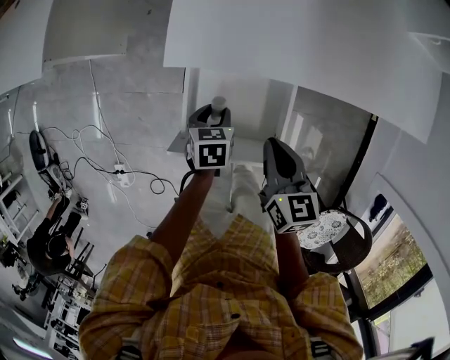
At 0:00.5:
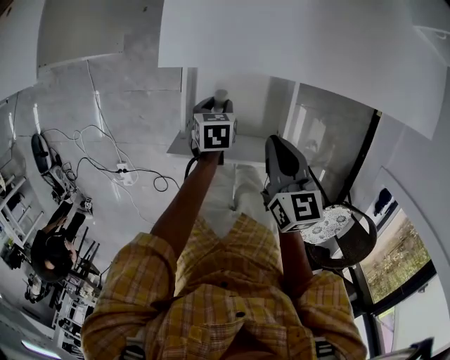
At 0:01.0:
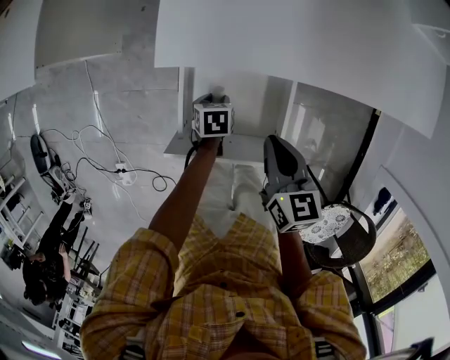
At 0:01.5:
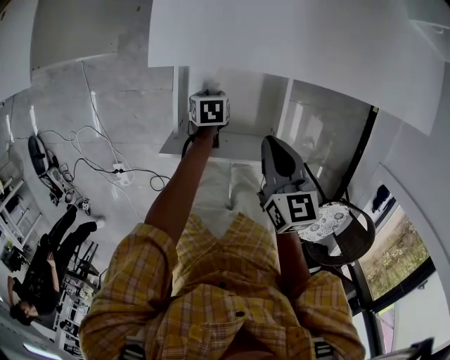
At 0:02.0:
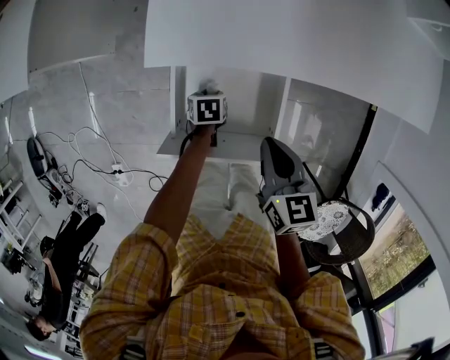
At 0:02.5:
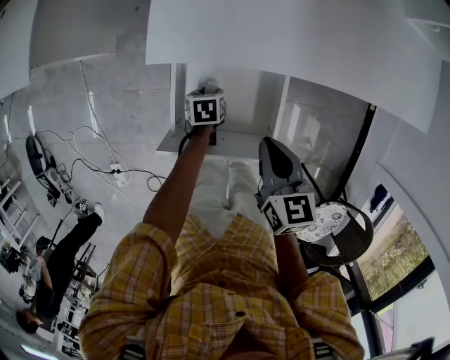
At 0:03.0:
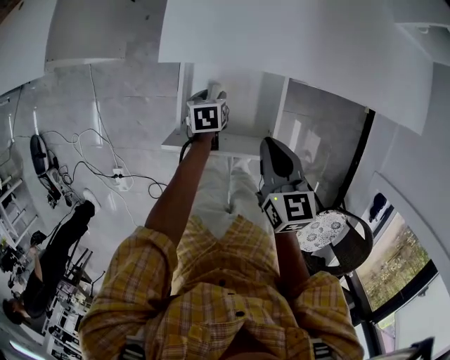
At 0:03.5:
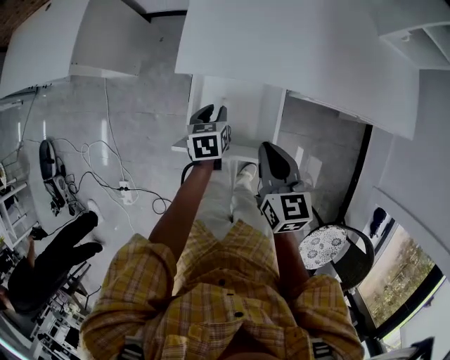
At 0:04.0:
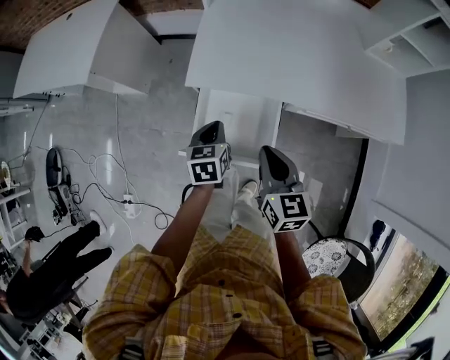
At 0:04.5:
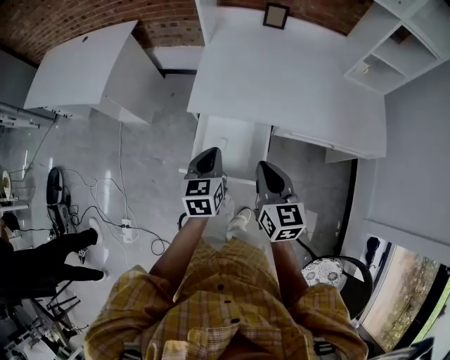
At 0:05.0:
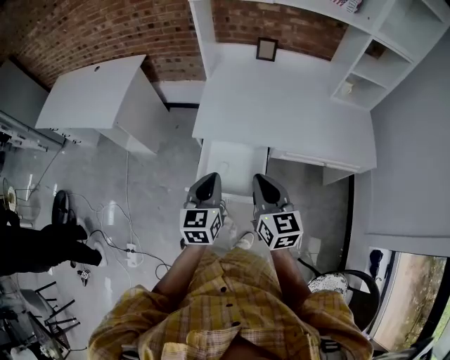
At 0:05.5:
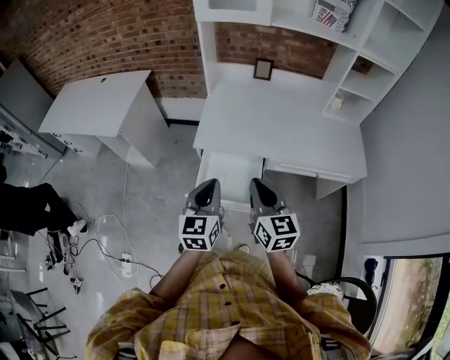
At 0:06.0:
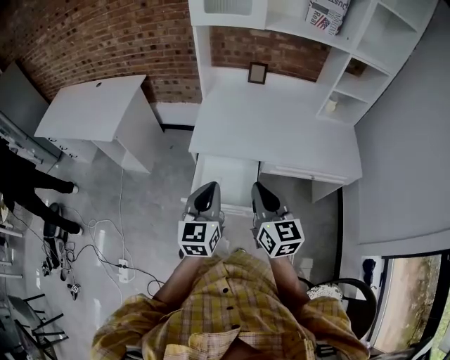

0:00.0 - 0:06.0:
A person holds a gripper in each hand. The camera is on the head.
0:00.0 - 0:02.0: The left gripper moves downward, about 15 cm.
0:02.0 - 0:04.0: The left gripper shifts about 30 cm upward, tilts its fingers approximately 30 degrees upward, and closes its fingers; the right gripper is displaced upward by approximately 15 cm.
0:04.0 - 0:06.0: The two grippers go about 25 cm upward and backward. The left gripper points its fingers roughly 30 degrees further upward.

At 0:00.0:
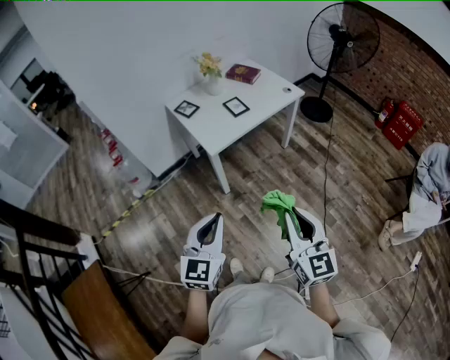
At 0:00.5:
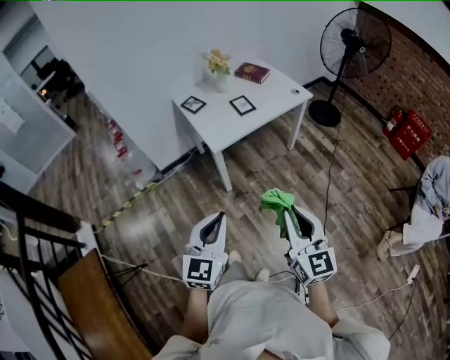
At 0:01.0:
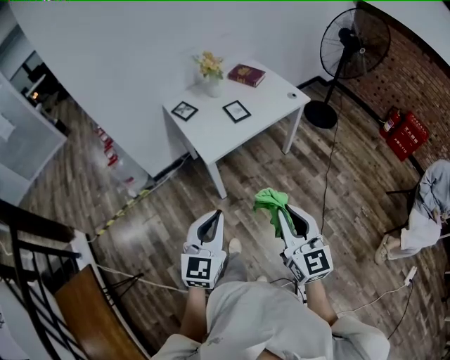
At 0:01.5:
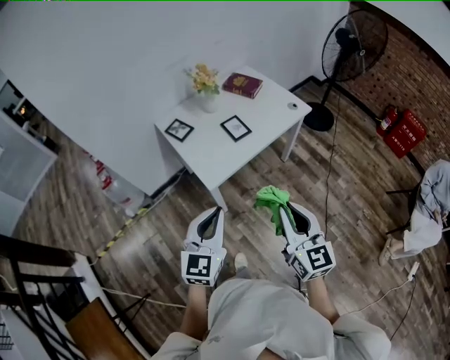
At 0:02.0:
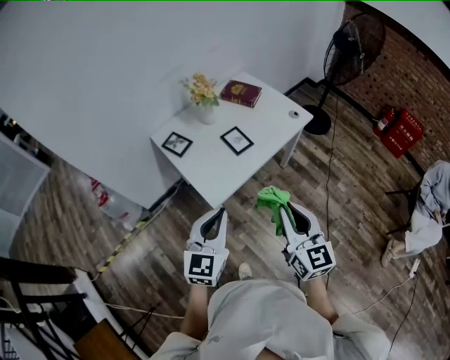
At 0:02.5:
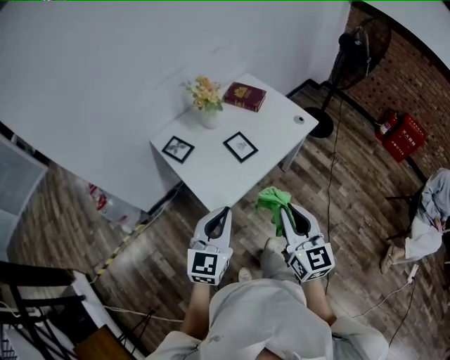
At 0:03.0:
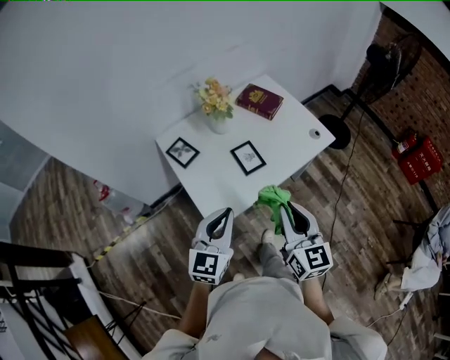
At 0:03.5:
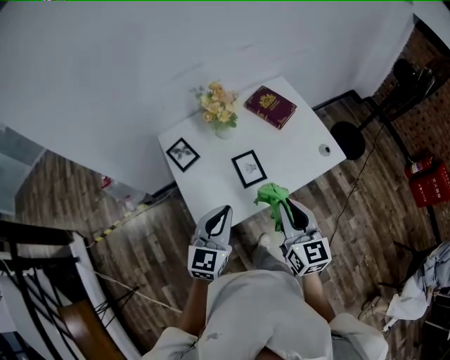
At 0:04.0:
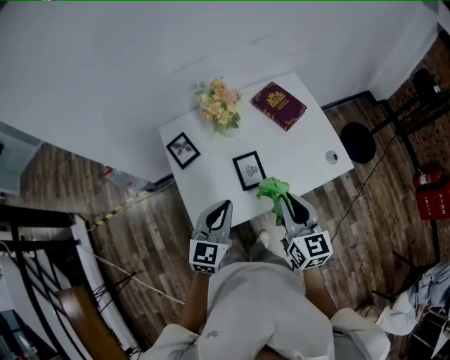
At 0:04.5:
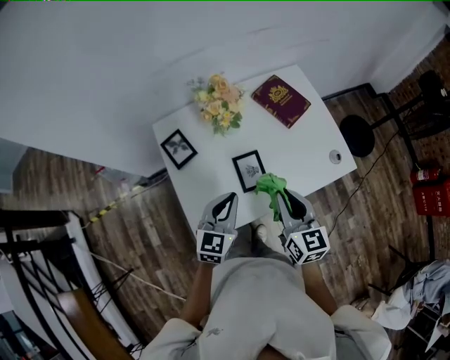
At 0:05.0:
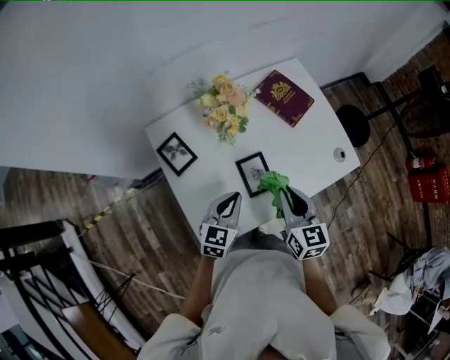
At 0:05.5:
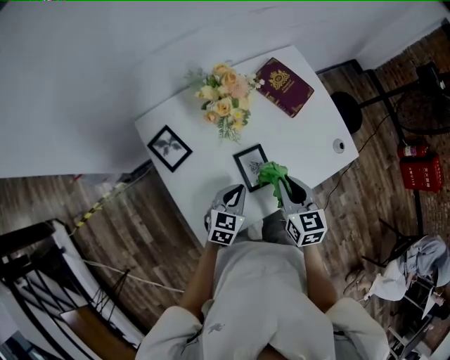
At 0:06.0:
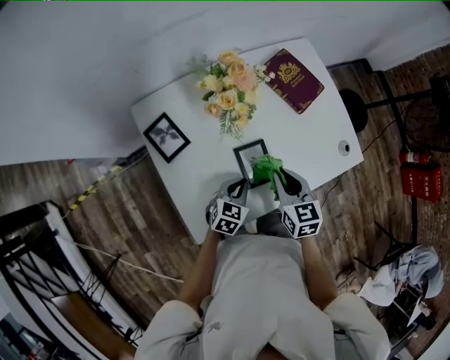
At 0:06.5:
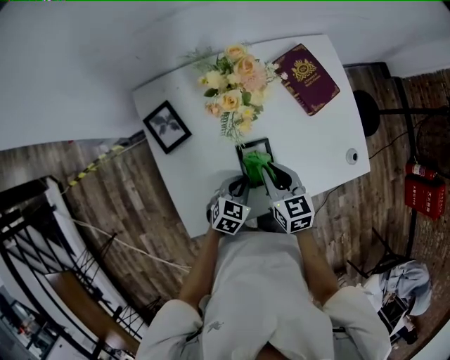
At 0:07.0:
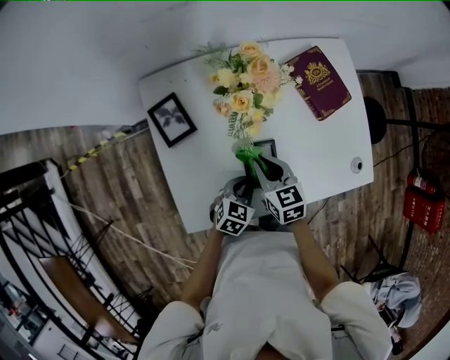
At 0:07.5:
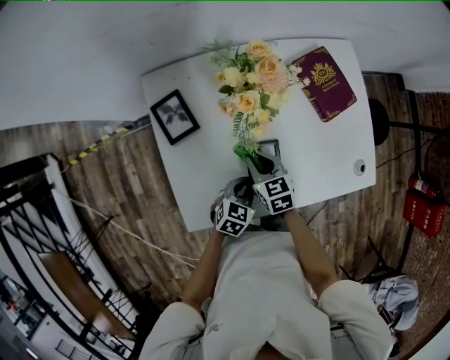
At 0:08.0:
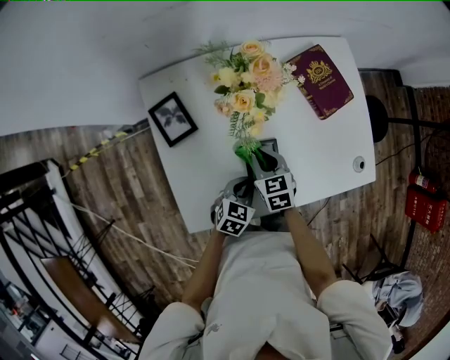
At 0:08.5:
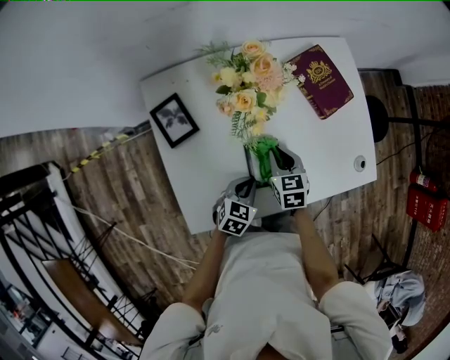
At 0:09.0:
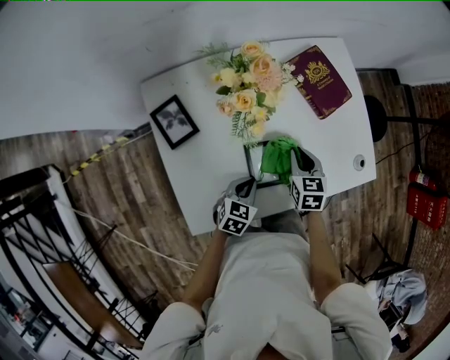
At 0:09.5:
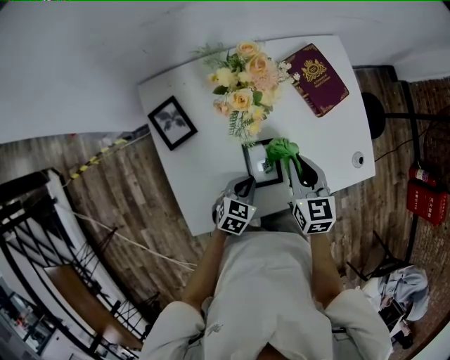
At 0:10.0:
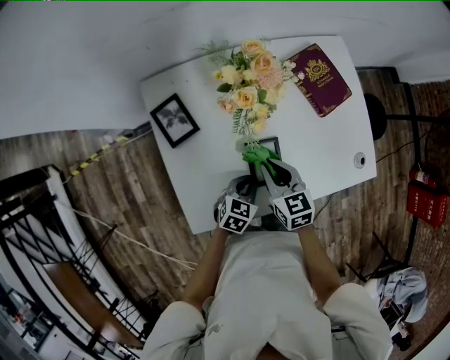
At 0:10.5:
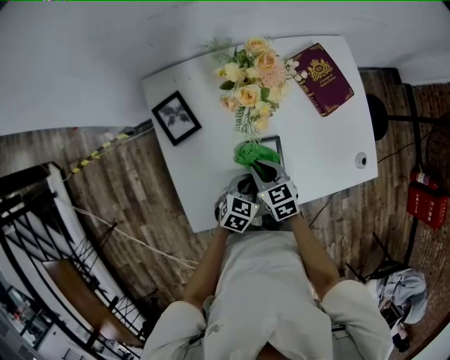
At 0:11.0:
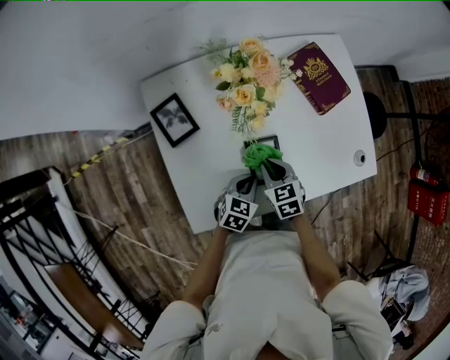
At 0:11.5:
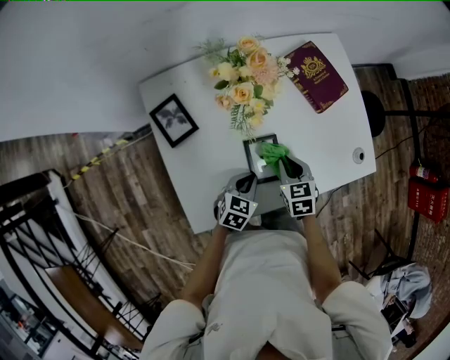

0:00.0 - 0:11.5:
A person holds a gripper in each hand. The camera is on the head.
0:00.0 - 0:02.0: Both grippers travel together forward, some 30 cm.
0:02.0 - 0:04.0: Both grippers move forward, some 30 cm. The right gripper turns by about 20 degrees.
0:04.0 - 0:06.0: The left gripper travels downward and forward by approximately 25 cm, and turns by approximately 30 degrees; the right gripper travels downward, forward and to the left by roughly 20 cm, and swivels about 20 degrees.
0:06.0 - 0:07.5: The right gripper goes some 15 cm to the left and downward, and swivels roughly 20 degrees.
0:07.5 - 0:09.5: The right gripper travels to the right and upward by roughly 15 cm, and rotates roughly 20 degrees.
0:09.5 - 0:11.5: The right gripper moves downward, approximately 10 cm.

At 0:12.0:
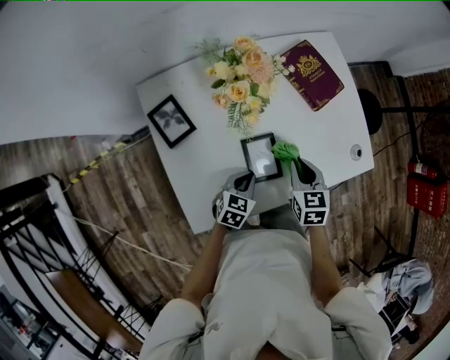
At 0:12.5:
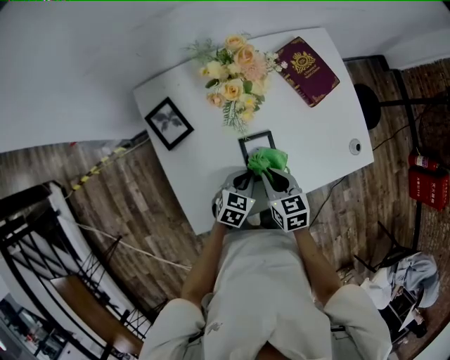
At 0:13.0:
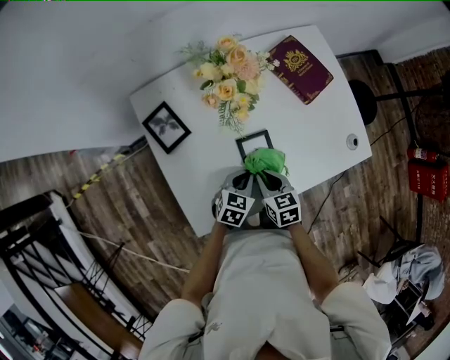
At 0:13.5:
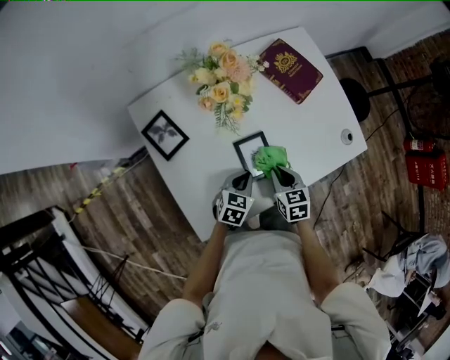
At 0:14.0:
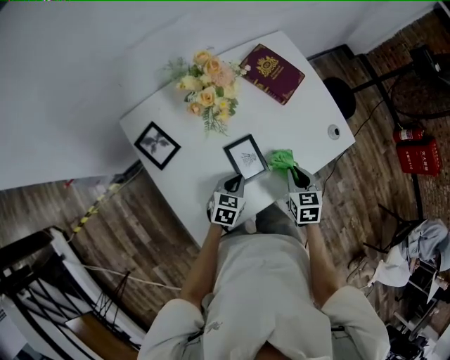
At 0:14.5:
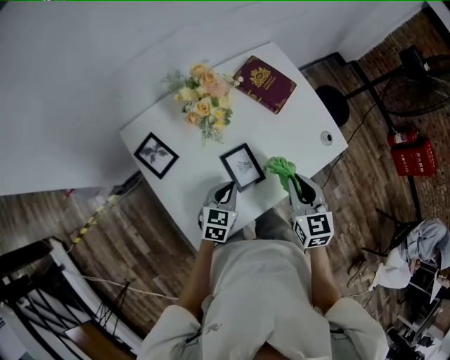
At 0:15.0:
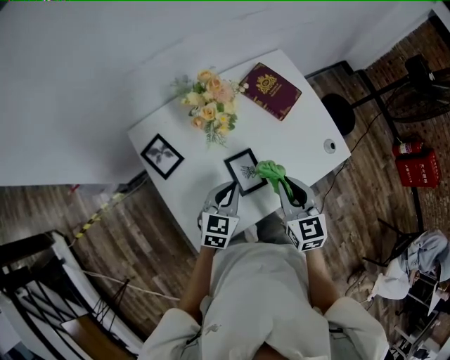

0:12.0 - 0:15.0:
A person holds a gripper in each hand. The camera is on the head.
0:12.0 - 0:13.5: The right gripper is displaced downward and backward by roughly 10 cm, and moves approximately 10 cm to the left and comes back.
0:13.5 - 0:15.0: The left gripper goes about 10 cm upward. Meanwhile the right gripper shifts about 20 cm upward, and changes its angle by approximately 20 degrees.

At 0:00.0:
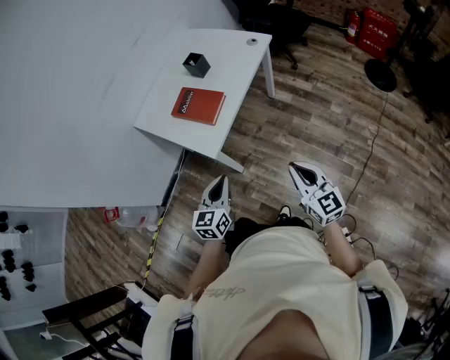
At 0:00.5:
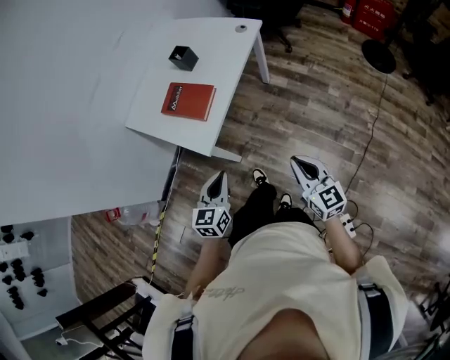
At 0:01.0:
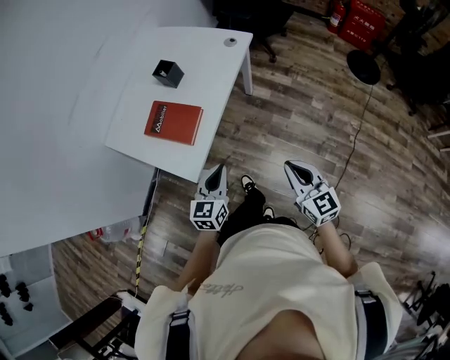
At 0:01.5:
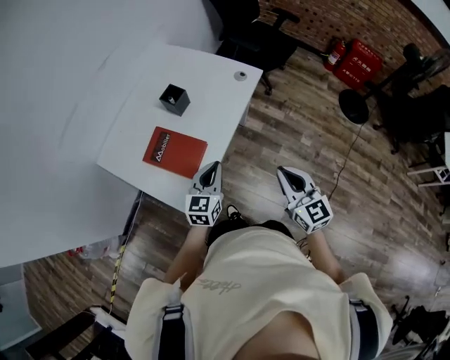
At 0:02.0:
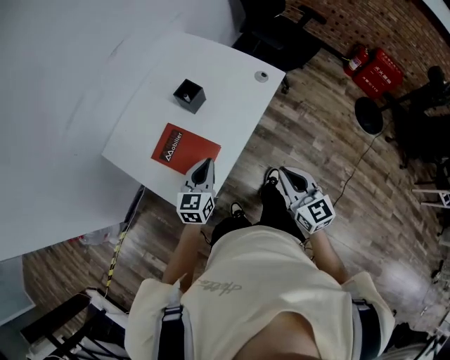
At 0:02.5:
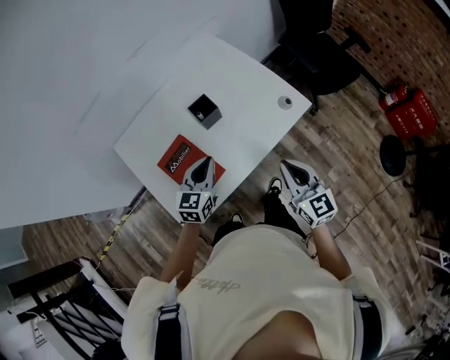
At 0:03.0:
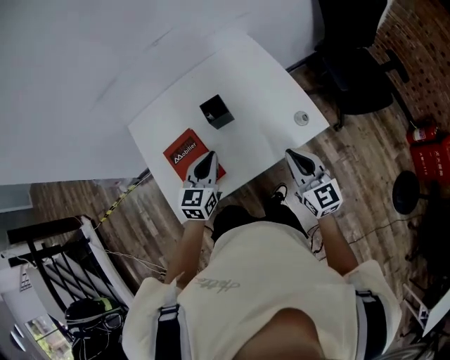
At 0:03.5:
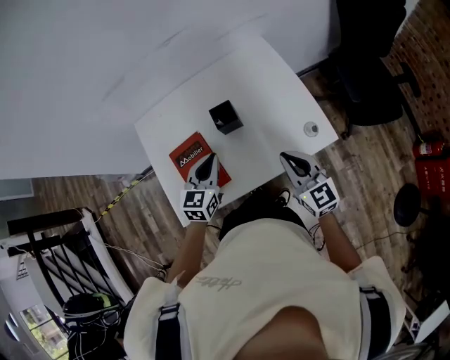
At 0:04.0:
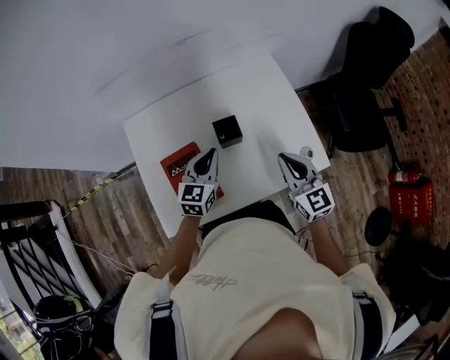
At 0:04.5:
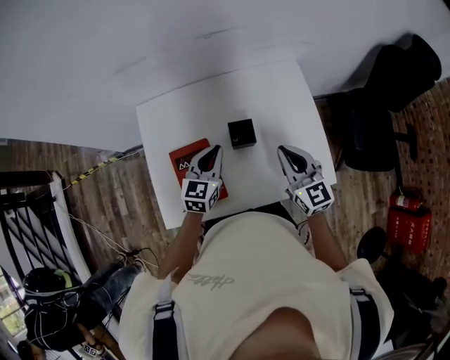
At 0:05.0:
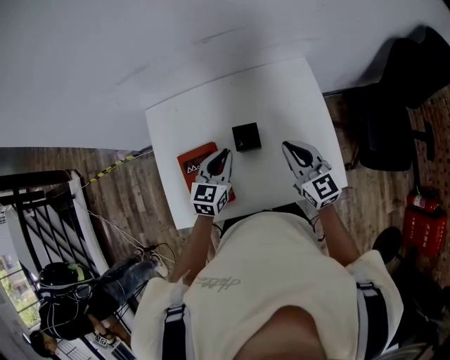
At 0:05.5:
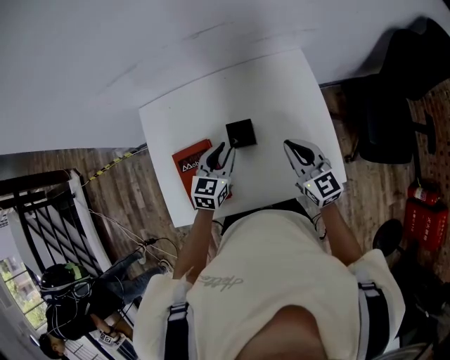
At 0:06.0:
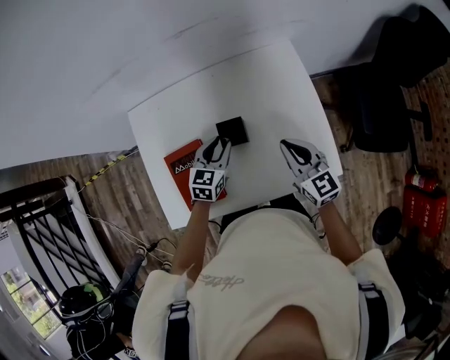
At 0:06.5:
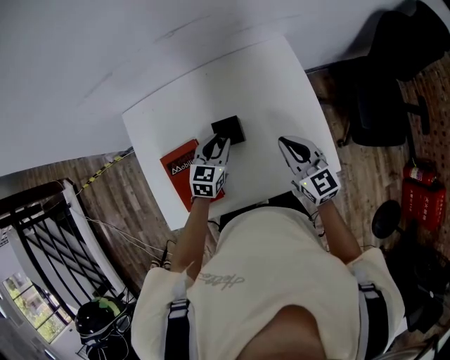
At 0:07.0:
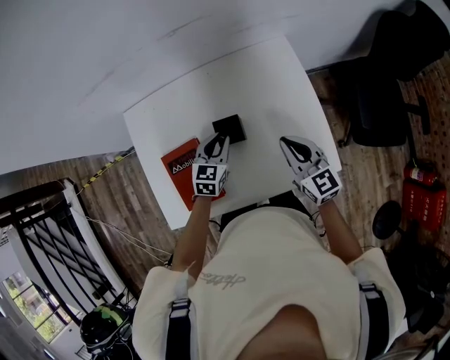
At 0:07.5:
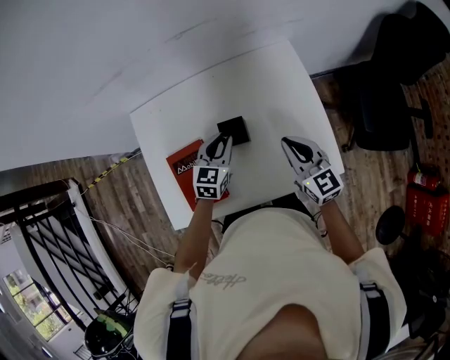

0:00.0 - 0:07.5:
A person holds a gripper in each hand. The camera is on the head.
0:00.0 - 0:02.0: Both grippers move forward, about 35 cm.
0:02.0 - 0:04.0: The right gripper moves about 35 cm, and rotates roughly 40 degrees. Meanwhile the left gripper changes place by roughly 20 cm, and swivels approximately 30 degrees.
0:04.0 - 0:05.5: The left gripper shifts by roughly 5 cm, and opens its fingers. Meanwhile the right gripper goes approximately 10 cm forward.
0:05.5 - 0:07.5: The grippers stay close to where they were, moving slightly.
